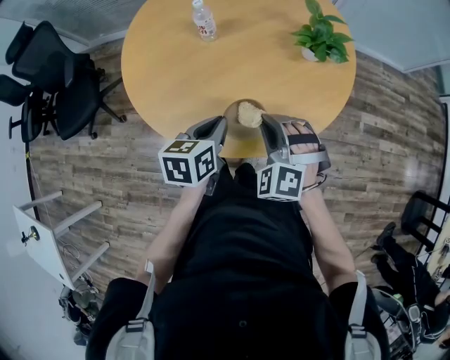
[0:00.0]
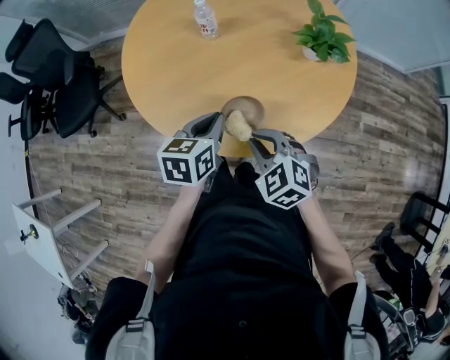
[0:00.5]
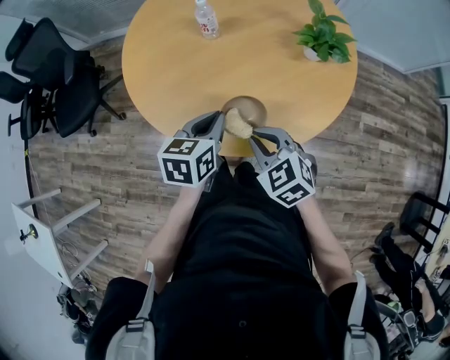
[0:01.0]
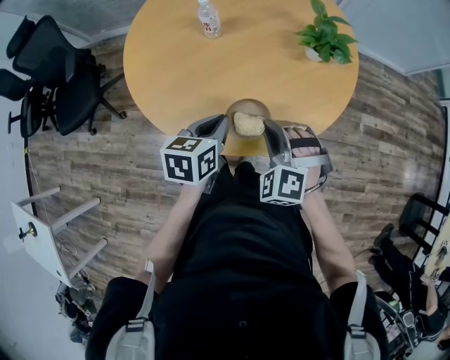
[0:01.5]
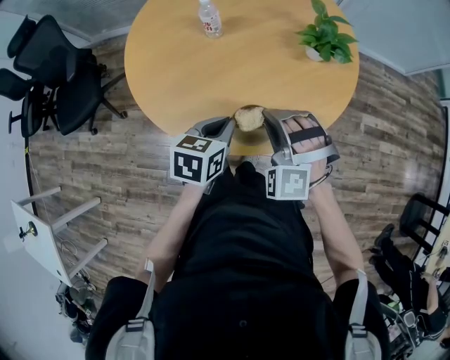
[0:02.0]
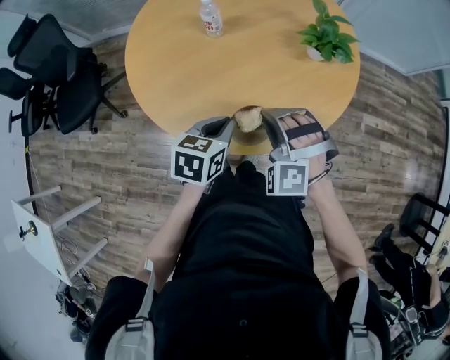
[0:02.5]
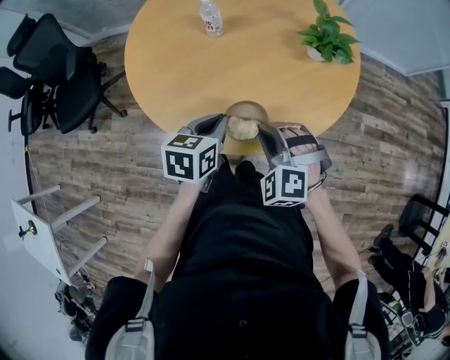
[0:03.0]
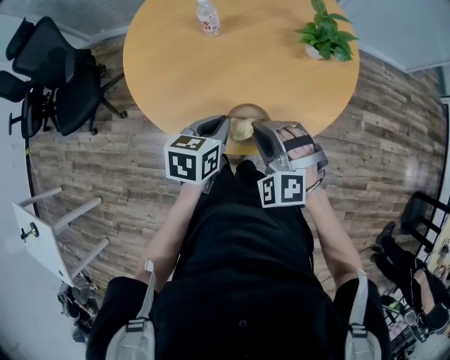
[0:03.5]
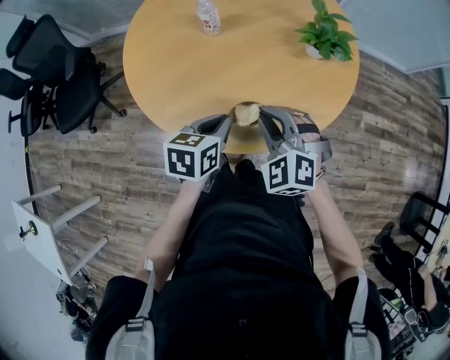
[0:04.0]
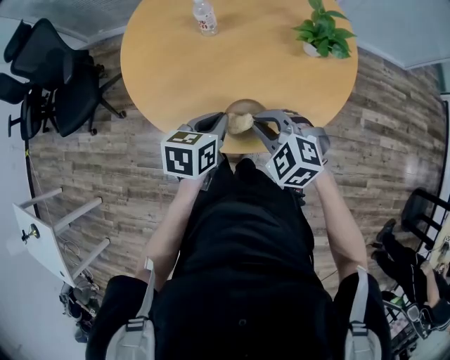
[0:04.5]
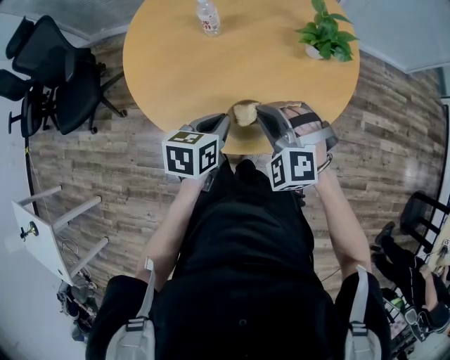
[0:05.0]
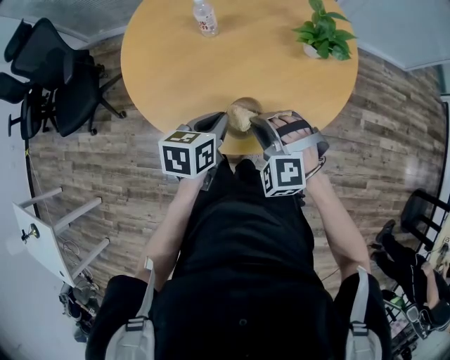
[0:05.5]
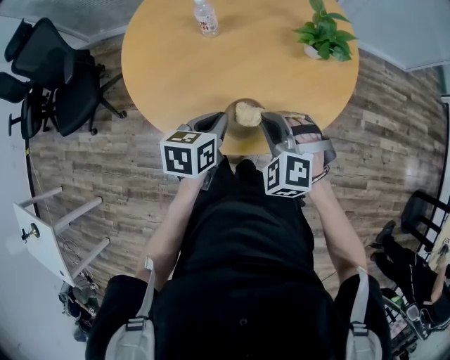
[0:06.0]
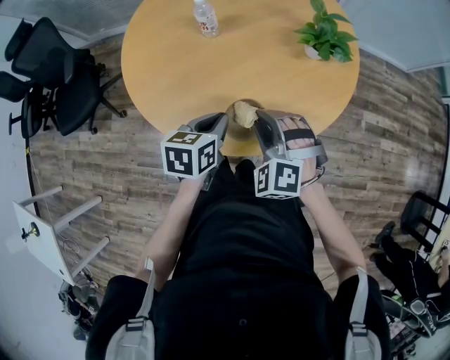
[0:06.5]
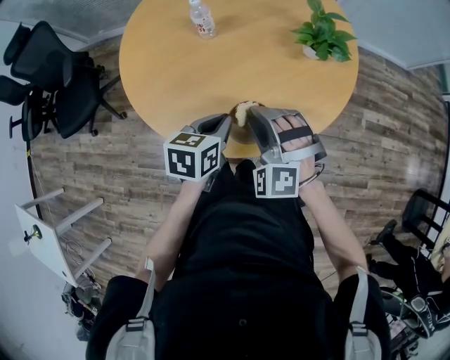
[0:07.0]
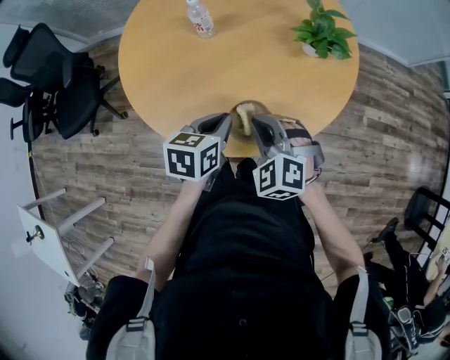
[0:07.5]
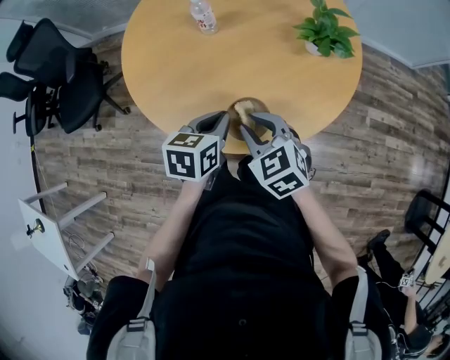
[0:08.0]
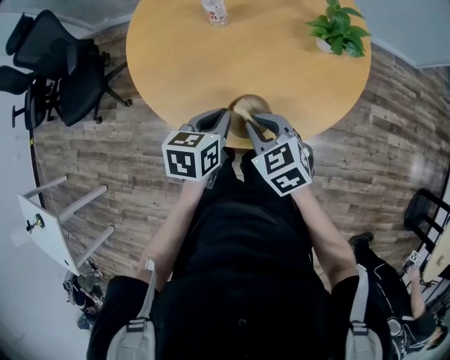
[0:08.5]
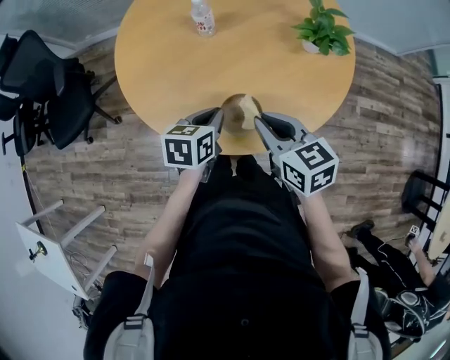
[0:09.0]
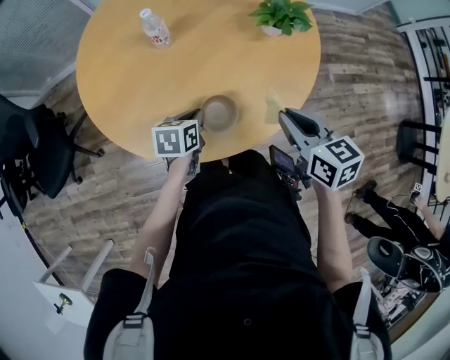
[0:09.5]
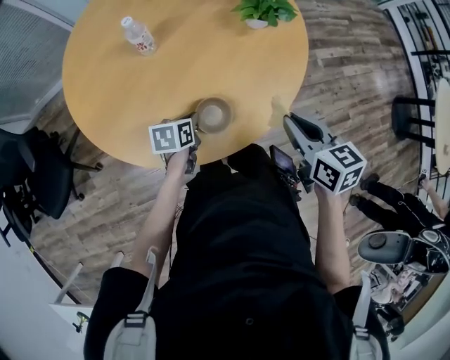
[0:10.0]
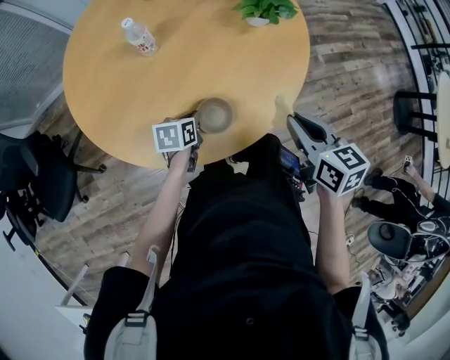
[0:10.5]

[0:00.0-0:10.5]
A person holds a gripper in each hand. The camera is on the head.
0:02.0 to 0:04.0: The right gripper changes its angle by about 30 degrees.
0:06.5 to 0:08.5: The right gripper rotates around the line of its fingers by about 50 degrees, clockwise from behind.
0:08.5 to 0:10.5: The right gripper changes place by roughly 15 cm, and rolls clockwise, seen from behind, by approximately 40 degrees. Meanwhile the left gripper goes some 15 cm downward, and rotates approximately 30 degrees.

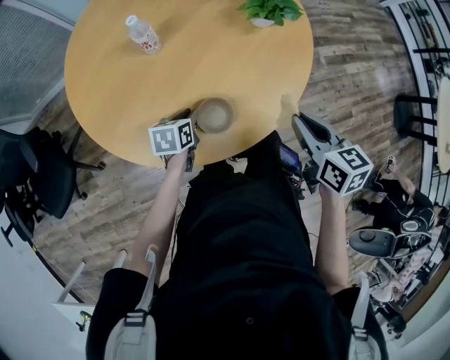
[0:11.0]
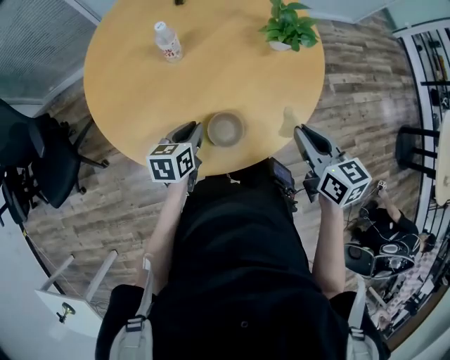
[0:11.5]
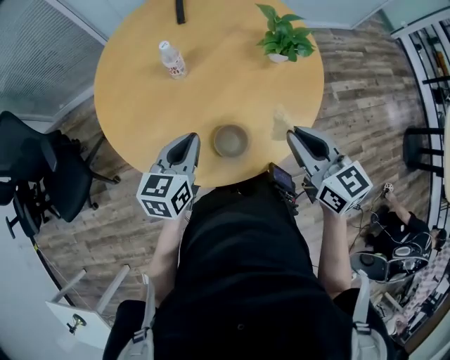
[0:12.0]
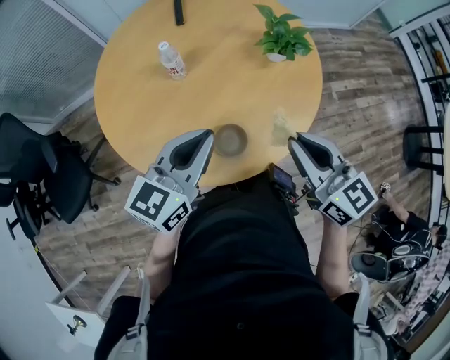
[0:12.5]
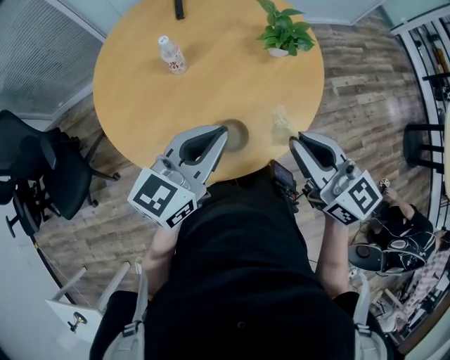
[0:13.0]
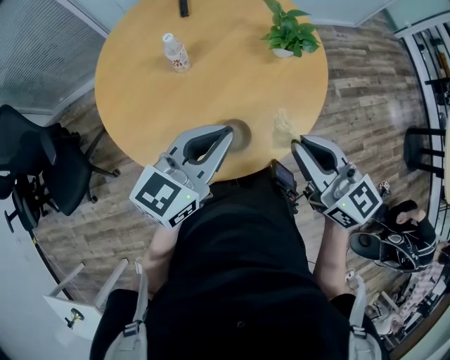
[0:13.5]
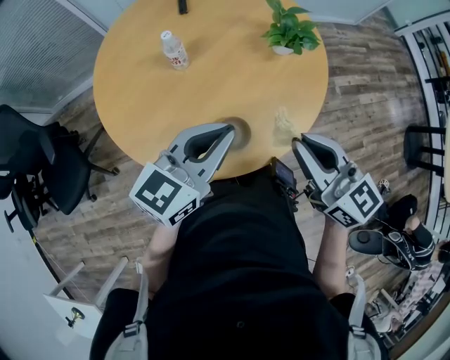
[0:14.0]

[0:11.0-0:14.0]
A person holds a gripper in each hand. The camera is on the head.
0:11.0 to 0:12.5: The left gripper goes roughly 30 cm upward, and tilts its fingers about 40 degrees upward, while the right gripper is displaced upward and to the left by approximately 15 cm, and changes its angle by about 30 degrees.
0:12.5 to 0:14.0: The grippers move only a little.

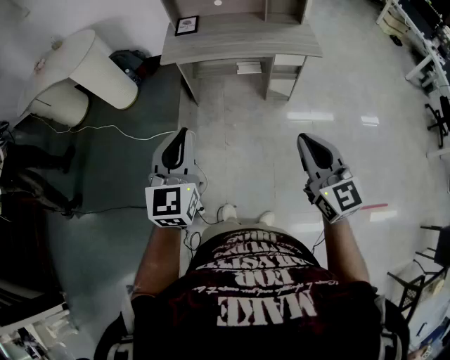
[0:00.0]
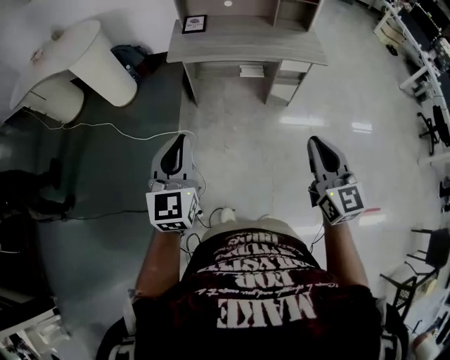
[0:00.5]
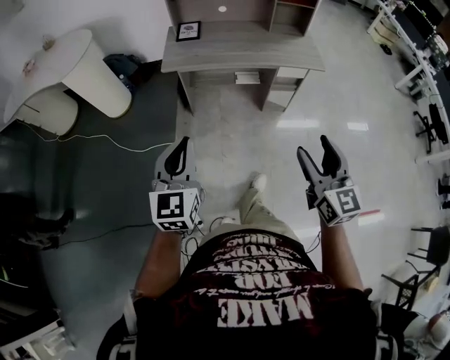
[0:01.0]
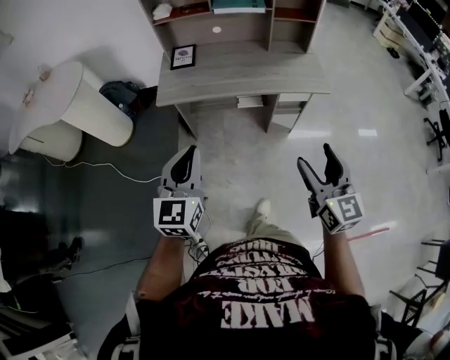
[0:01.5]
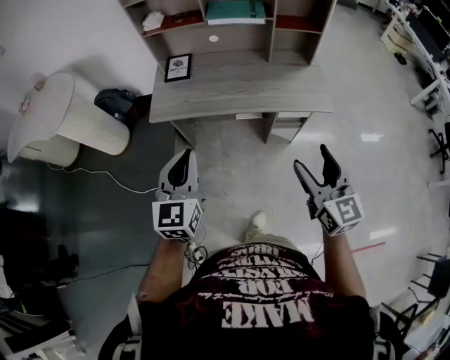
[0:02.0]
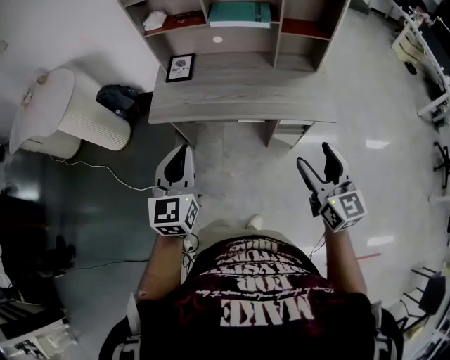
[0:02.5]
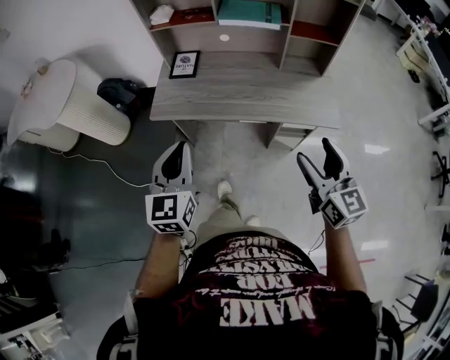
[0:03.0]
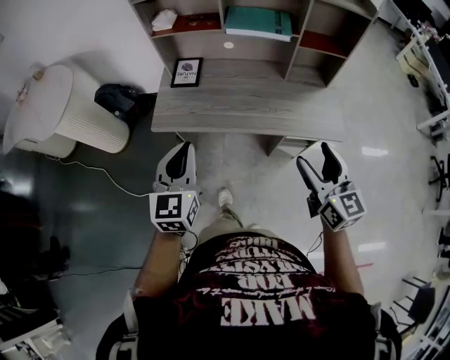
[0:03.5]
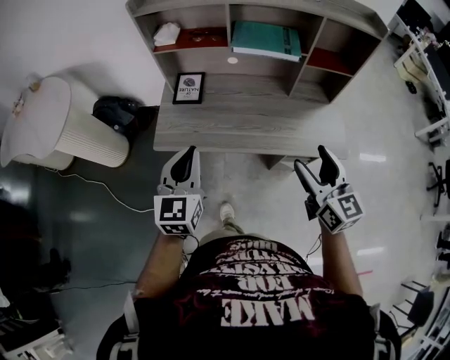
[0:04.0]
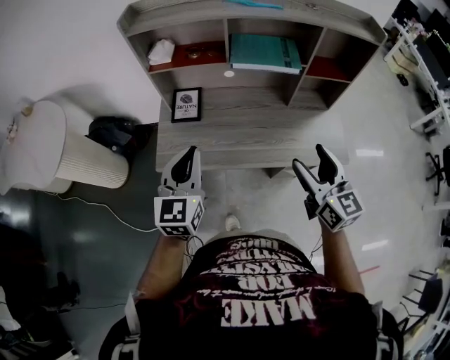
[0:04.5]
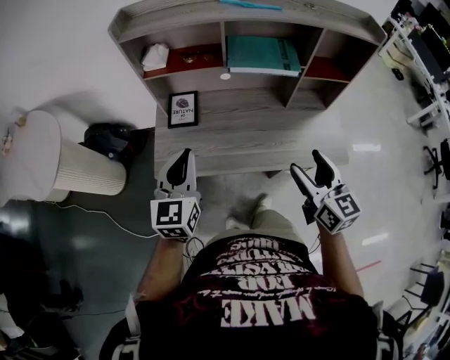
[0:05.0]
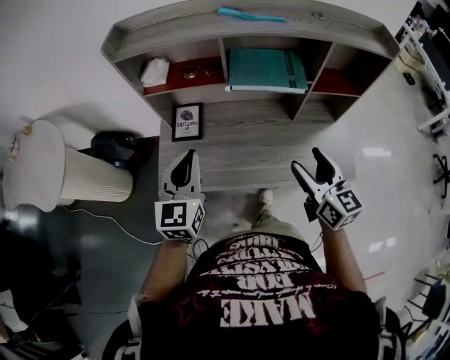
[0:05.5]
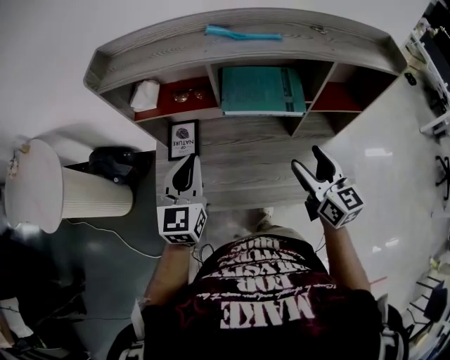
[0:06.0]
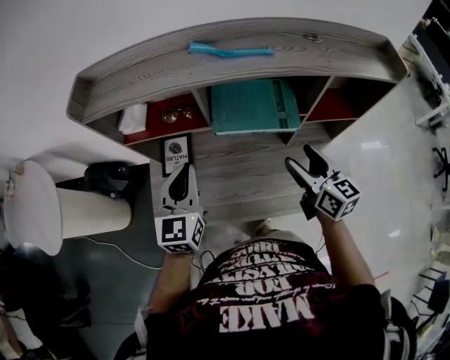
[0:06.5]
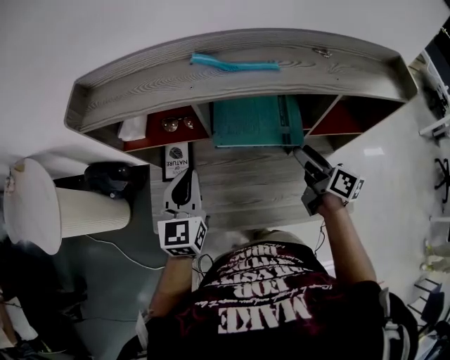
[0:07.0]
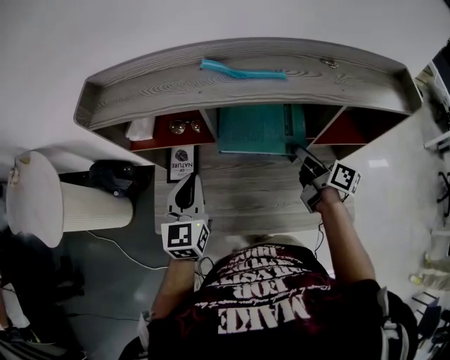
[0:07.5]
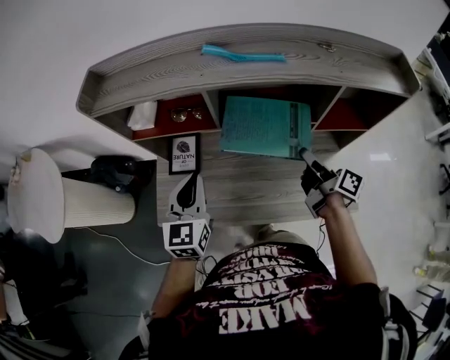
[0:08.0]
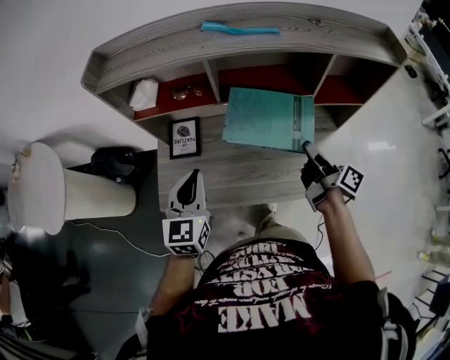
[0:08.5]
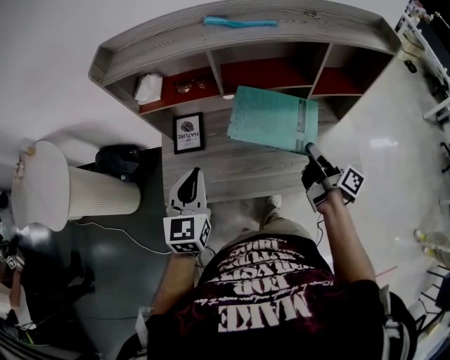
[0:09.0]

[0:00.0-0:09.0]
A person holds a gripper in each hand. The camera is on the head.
0:00.0 to 0:02.0: The grippers both shift forward by approximately 30 cm. The right gripper opens its fingers.
0:02.0 to 0:04.5: Both grippers move forward, some 30 cm.
0:04.5 to 0:07.0: The grippers both shift forward by approximately 25 cm. The right gripper twists roughly 40 degrees clockwise, seen from behind.
0:07.0 to 0:09.0: Both grippers travel together backward, roughly 15 cm. The right gripper swivels about 30 degrees, and closes up.

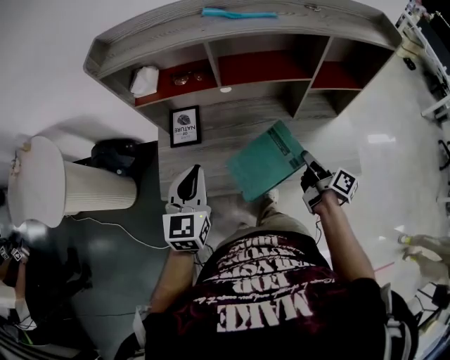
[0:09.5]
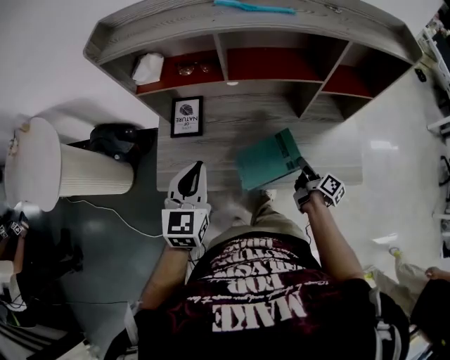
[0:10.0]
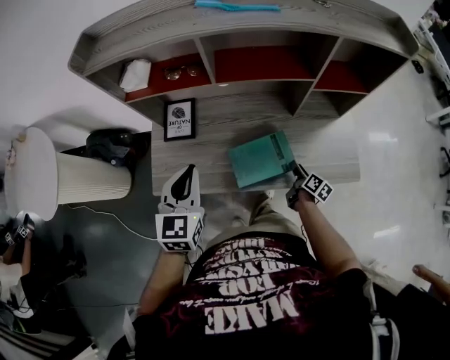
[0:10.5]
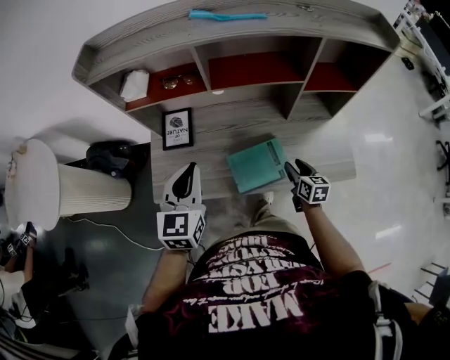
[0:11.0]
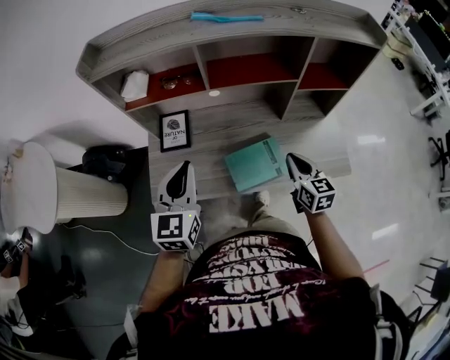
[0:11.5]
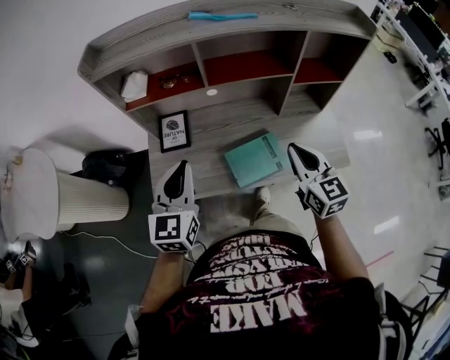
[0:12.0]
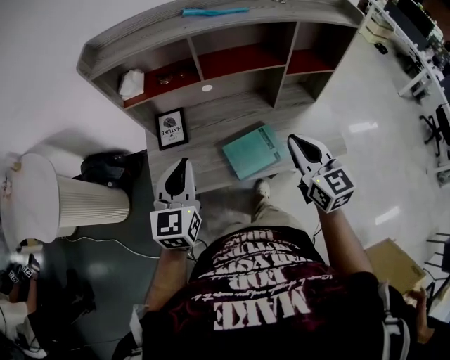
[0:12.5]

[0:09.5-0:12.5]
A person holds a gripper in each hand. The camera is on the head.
0:09.5 to 0:11.0: The right gripper moves downward, about 10 cm, and rolls counterclockwise, seen from behind, by approximately 40 degrees.
0:11.0 to 0:12.5: The right gripper is displaced upward by approximately 30 cm, rotates approximately 30 degrees, and closes its fingers. Meanwhile the left gripper changes place by approximately 5 cm.

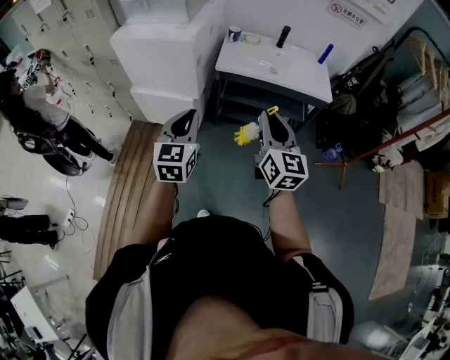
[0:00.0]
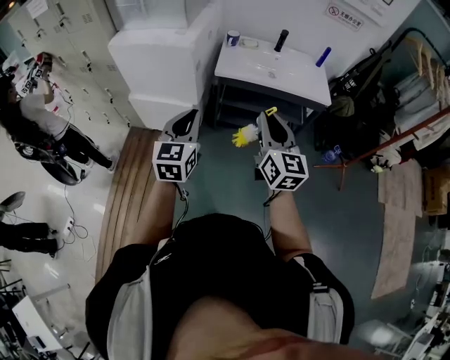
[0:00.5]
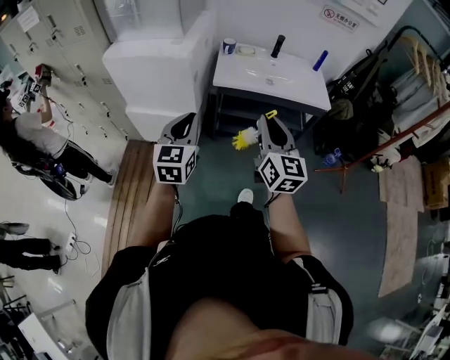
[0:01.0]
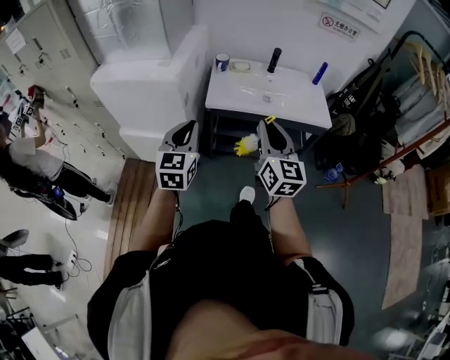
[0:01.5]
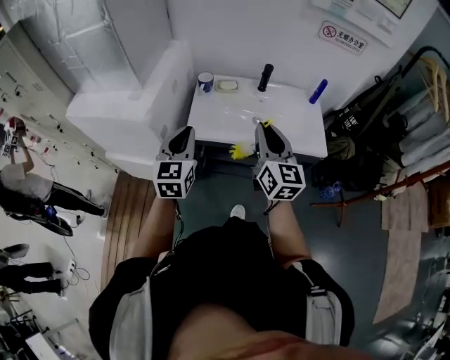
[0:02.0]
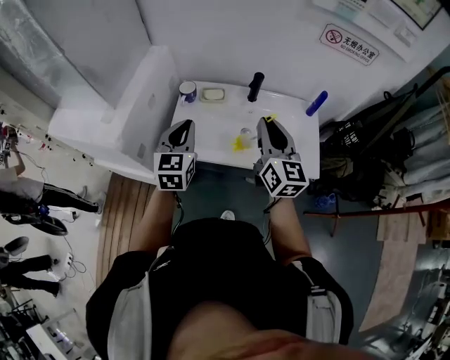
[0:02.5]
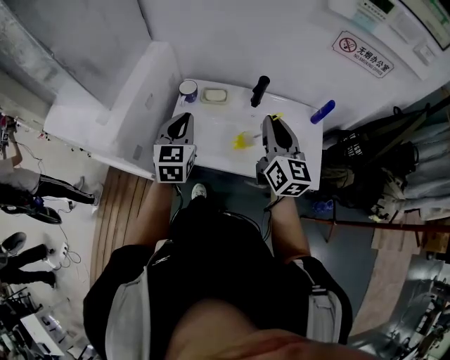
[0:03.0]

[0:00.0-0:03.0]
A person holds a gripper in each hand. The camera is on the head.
0:00.0 to 0:01.5: Both grippers travel together forward, about 15 cm.
0:01.5 to 0:03.0: The pair of grippers is taken forward and to the right, roughly 40 cm.
